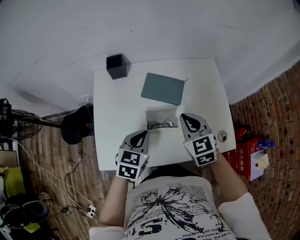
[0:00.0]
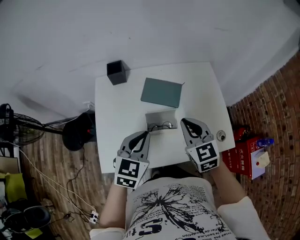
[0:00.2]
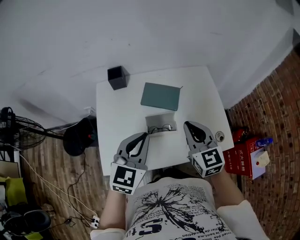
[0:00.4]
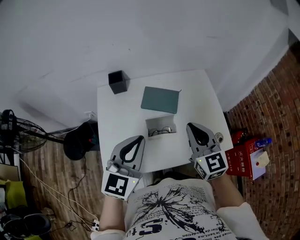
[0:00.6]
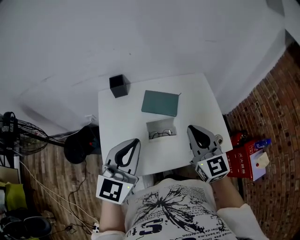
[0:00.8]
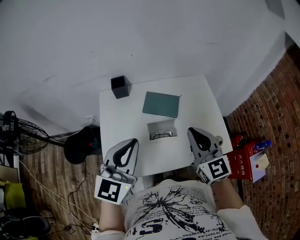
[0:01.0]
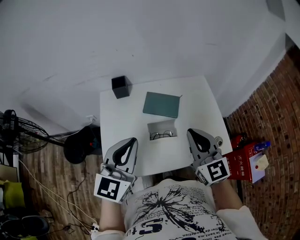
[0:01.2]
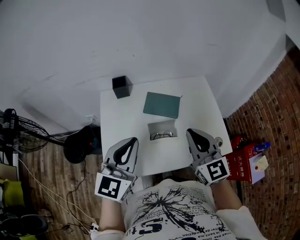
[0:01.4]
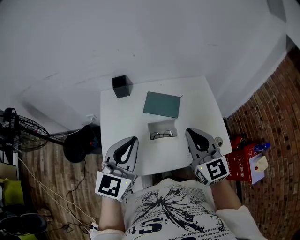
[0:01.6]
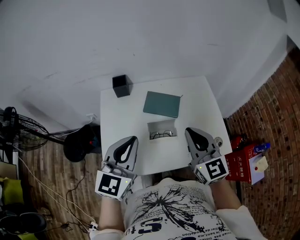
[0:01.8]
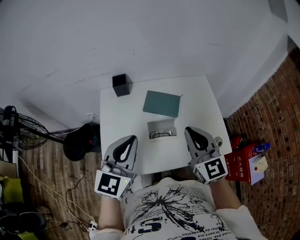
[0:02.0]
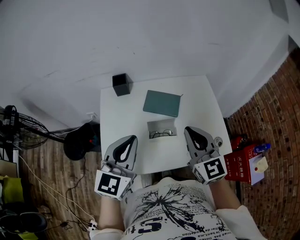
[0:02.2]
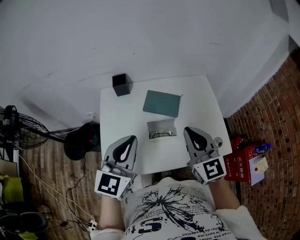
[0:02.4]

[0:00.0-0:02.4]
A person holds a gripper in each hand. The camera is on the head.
0:00.0 to 0:01.2: The right gripper goes some 15 cm upward and backward, and swivels roughly 30 degrees. The left gripper is displaced upward by roughly 20 cm, and tips its fingers upward by about 30 degrees.
0:01.2 to 0:02.4: The grippers make only small movements.

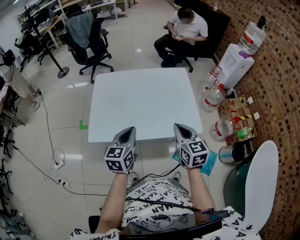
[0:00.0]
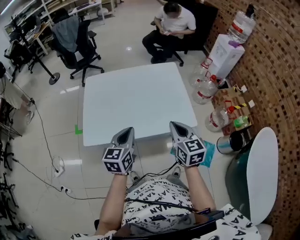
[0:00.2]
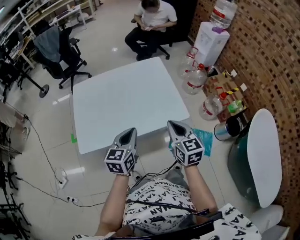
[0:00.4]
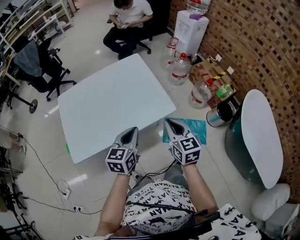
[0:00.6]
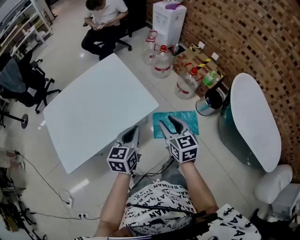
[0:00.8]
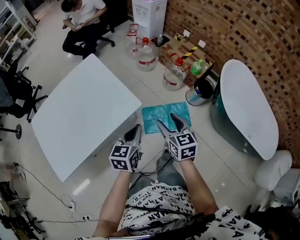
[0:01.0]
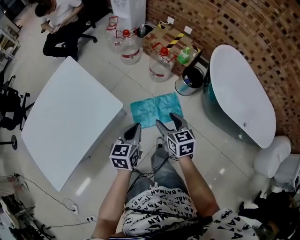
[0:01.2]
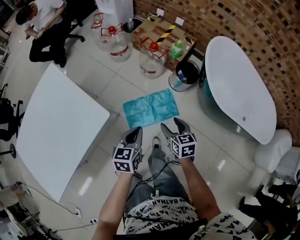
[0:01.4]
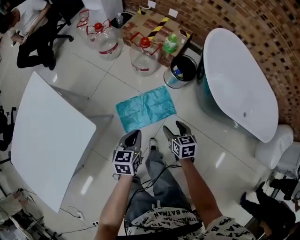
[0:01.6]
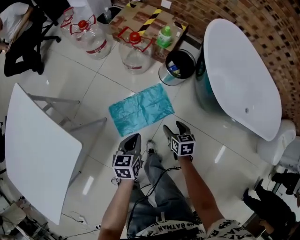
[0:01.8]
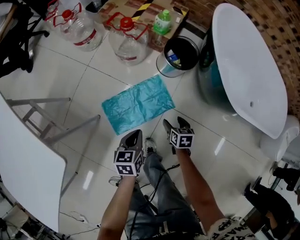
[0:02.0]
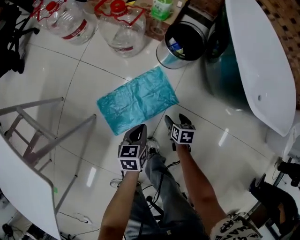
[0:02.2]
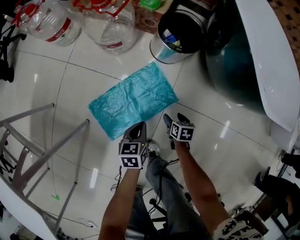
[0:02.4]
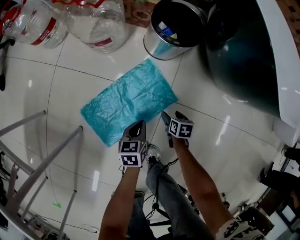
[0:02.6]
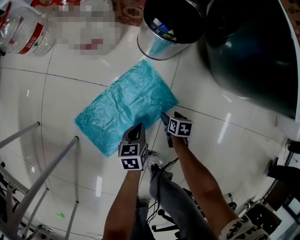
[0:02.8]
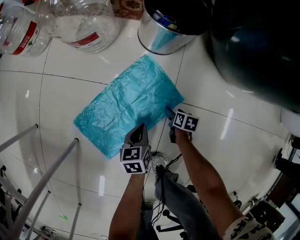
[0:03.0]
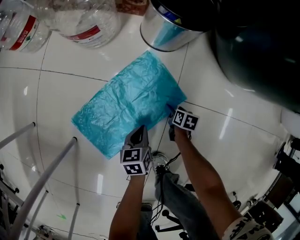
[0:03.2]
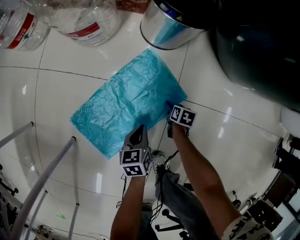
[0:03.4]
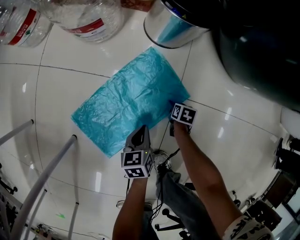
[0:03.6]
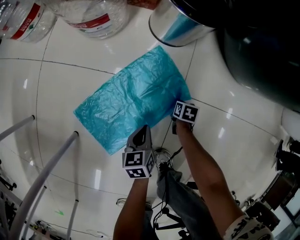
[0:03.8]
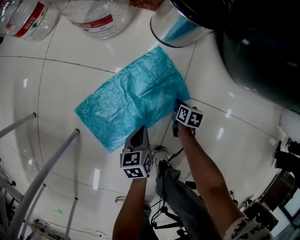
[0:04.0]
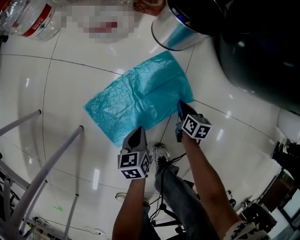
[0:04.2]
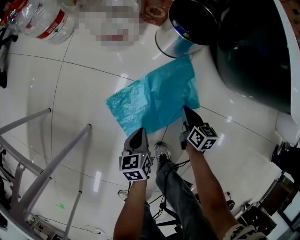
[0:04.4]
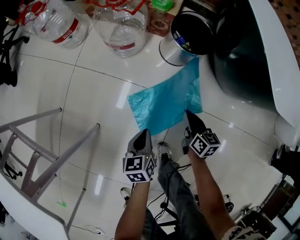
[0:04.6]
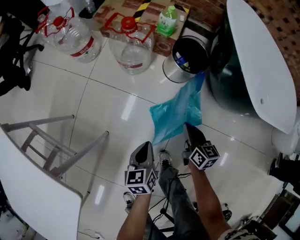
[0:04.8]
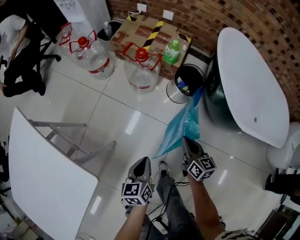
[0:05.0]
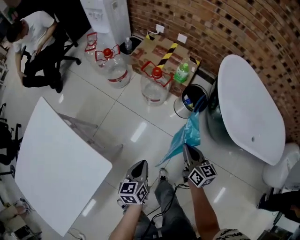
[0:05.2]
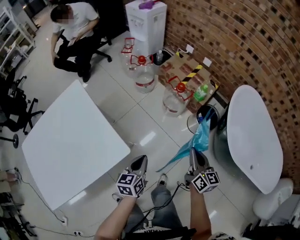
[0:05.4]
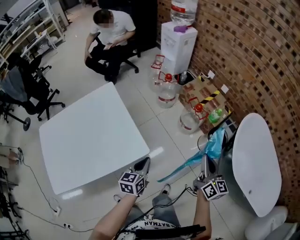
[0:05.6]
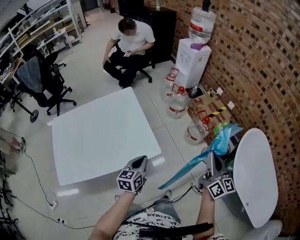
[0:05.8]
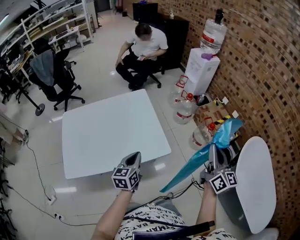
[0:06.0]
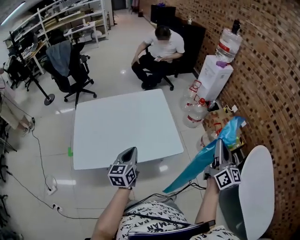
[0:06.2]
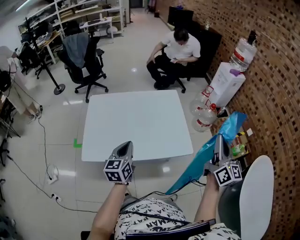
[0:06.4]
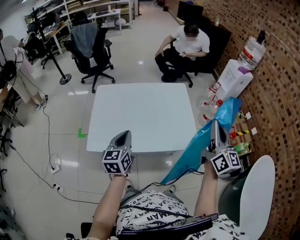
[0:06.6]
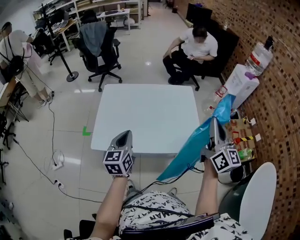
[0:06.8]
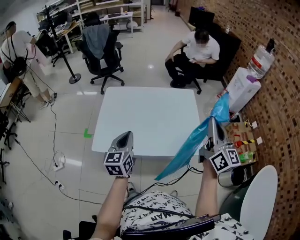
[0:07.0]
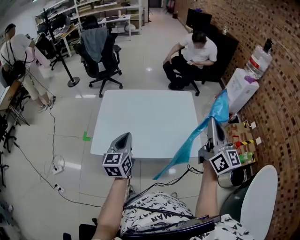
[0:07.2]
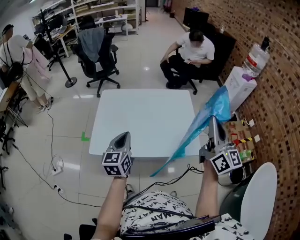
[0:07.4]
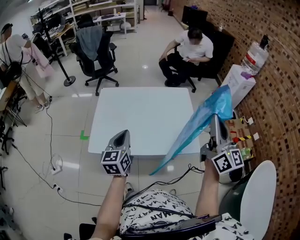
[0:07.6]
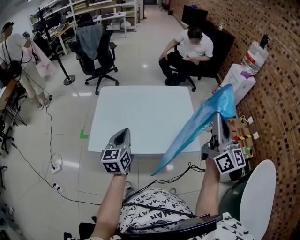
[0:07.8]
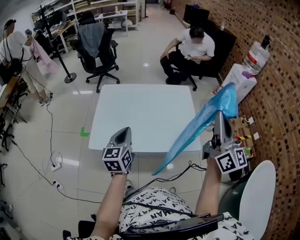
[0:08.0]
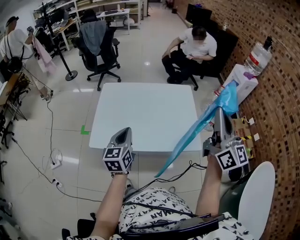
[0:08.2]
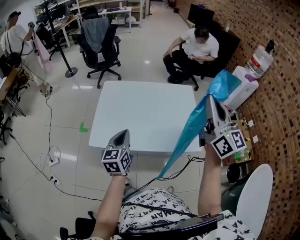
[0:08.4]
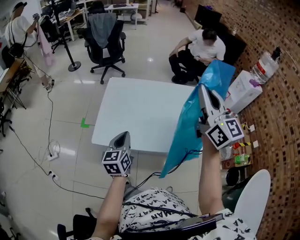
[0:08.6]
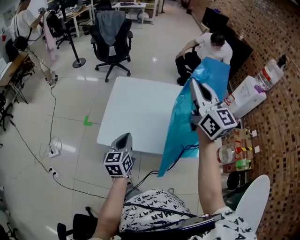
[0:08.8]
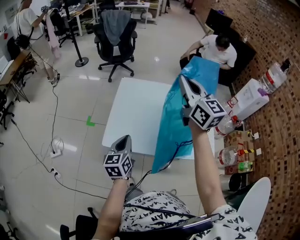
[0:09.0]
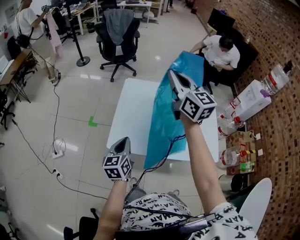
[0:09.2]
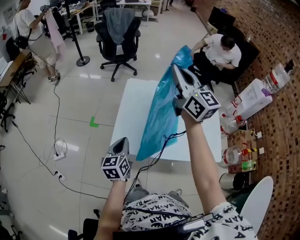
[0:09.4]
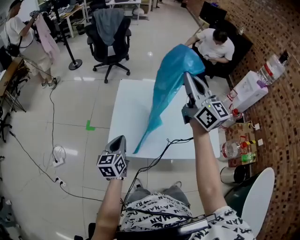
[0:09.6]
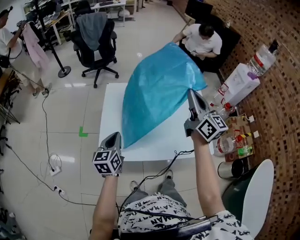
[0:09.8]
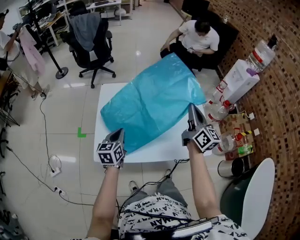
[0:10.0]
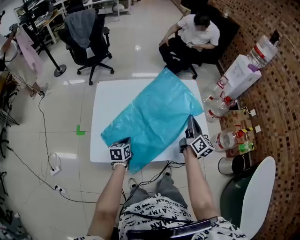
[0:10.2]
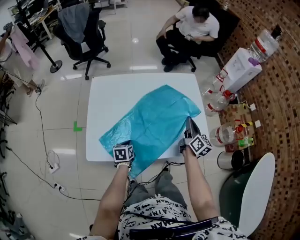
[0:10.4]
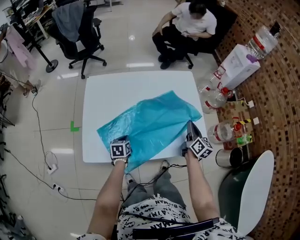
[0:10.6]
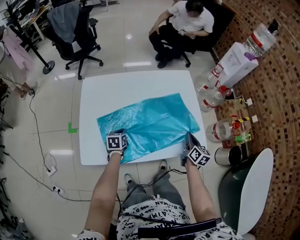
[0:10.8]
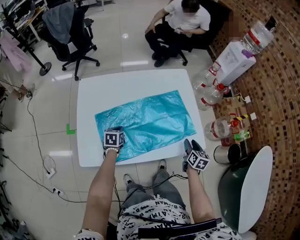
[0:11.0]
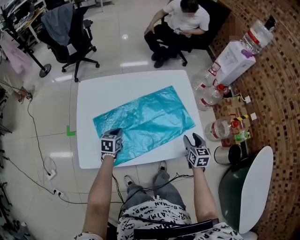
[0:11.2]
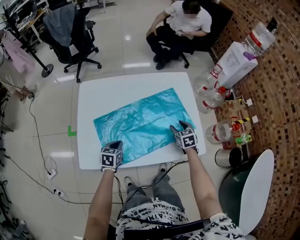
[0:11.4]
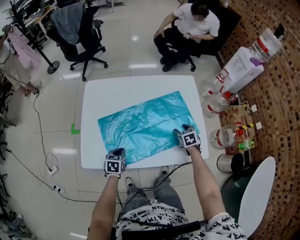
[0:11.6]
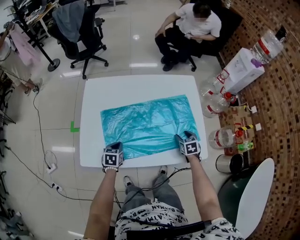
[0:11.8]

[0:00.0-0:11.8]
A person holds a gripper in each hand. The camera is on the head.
0:00.0 to 0:01.4: The pair of grippers is taken approximately 50 cm. The right gripper rotates approximately 50 degrees, and opens up. Meanwhile the left gripper changes its angle by approximately 50 degrees.
0:01.4 to 0:03.0: Both grippers move downward, approximately 70 cm. The right gripper rolls clockwise, seen from behind, by some 50 degrees, while the left gripper rotates some 20 degrees.
0:03.0 to 0:04.4: The left gripper goes some 10 cm upward. Meanwhile the right gripper heads upward, covering about 25 cm, changes its angle by approximately 30 degrees, and closes up.
0:04.4 to 0:06.0: Both grippers travel together upward, some 80 cm. The left gripper swivels about 50 degrees. Meanwhile the right gripper tilts its fingers approximately 50 degrees upward.
0:06.0 to 0:07.4: The left gripper moves some 30 cm, and changes its angle by roughly 30 degrees; the right gripper shifts by some 30 cm, and swivels roughly 20 degrees.
0:07.4 to 0:08.8: The right gripper travels to the left and forward by roughly 25 cm, and turns by roughly 20 degrees. Meanwhile the left gripper heads to the left and downward, covering some 10 cm.
0:08.8 to 0:10.4: Both grippers move downward, some 30 cm. The left gripper points its fingers about 30 degrees further downward. Meanwhile the right gripper rotates about 50 degrees.
0:10.4 to 0:11.8: The right gripper goes up and down, some 20 cm each way, reversing 2 times, tilts its fingers approximately 50 degrees downward, and opens its fingers, while the left gripper moves roughly 10 cm forward and comes back.

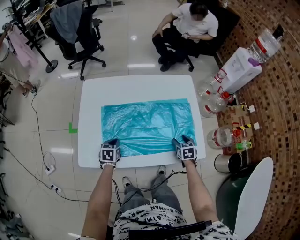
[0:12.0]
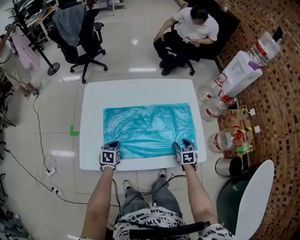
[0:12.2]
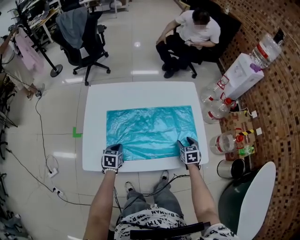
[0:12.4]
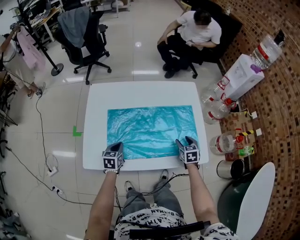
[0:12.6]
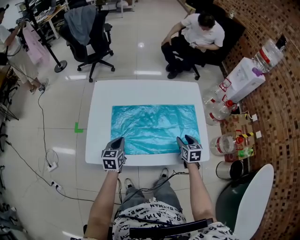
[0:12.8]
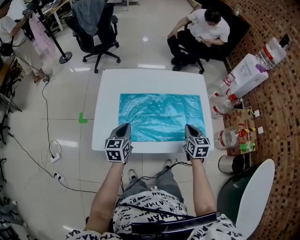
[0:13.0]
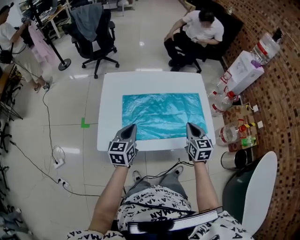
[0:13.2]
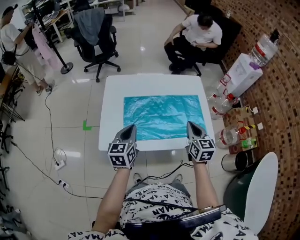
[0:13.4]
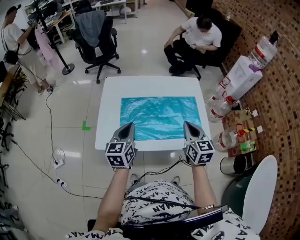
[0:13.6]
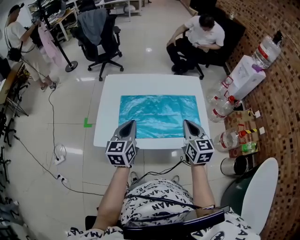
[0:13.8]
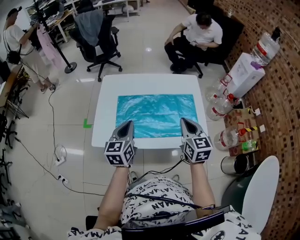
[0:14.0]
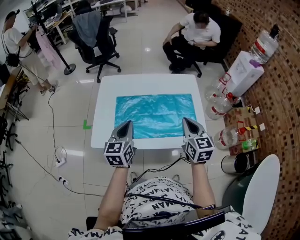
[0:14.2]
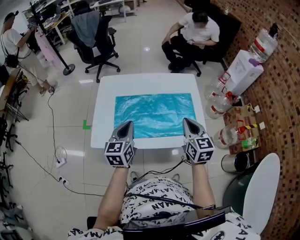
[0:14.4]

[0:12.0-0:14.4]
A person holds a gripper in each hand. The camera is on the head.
0:12.0 to 0:13.2: The right gripper moves upward and to the left, about 25 cm, rotates about 30 degrees, and closes its fingers. Meanwhile the left gripper is displaced upward by some 20 cm, and tips its fingers upward by approximately 30 degrees.
0:13.2 to 0:14.4: The left gripper shifts about 10 cm upward and to the right. Meanwhile the right gripper is displaced upward by some 10 cm.

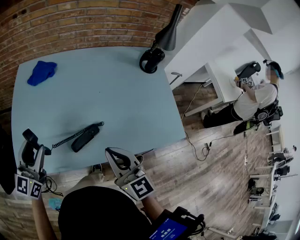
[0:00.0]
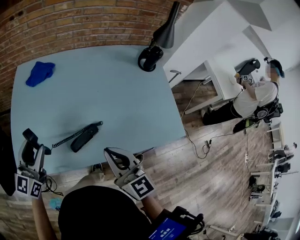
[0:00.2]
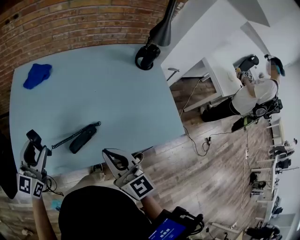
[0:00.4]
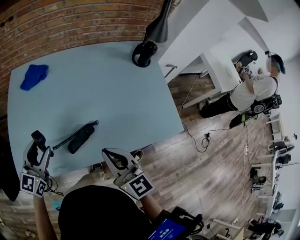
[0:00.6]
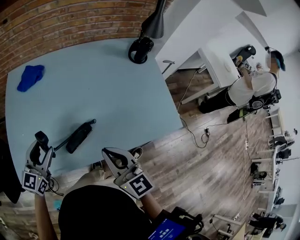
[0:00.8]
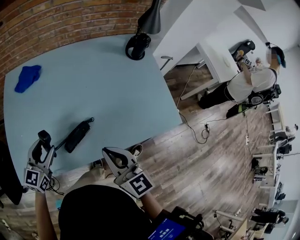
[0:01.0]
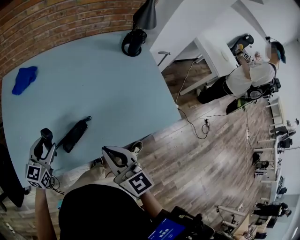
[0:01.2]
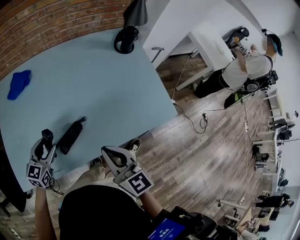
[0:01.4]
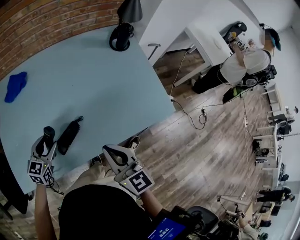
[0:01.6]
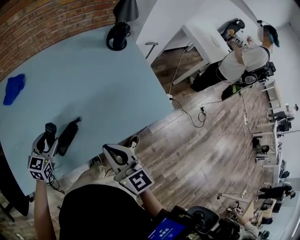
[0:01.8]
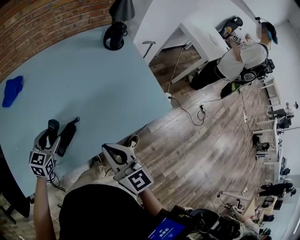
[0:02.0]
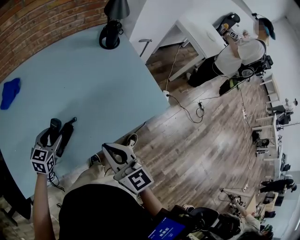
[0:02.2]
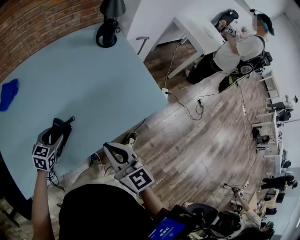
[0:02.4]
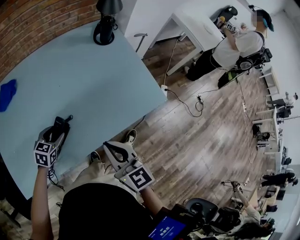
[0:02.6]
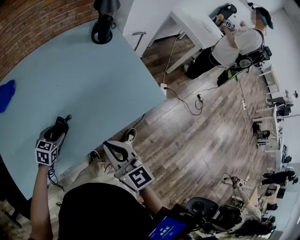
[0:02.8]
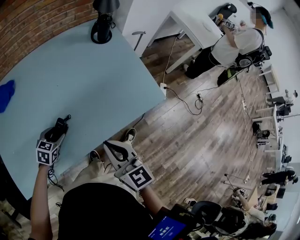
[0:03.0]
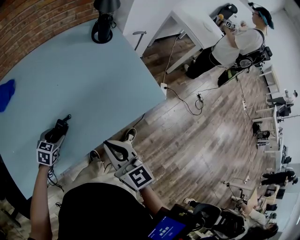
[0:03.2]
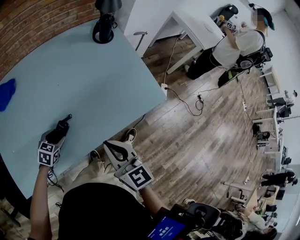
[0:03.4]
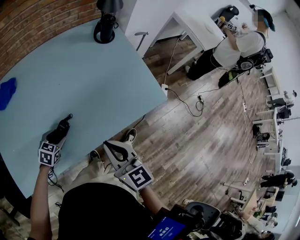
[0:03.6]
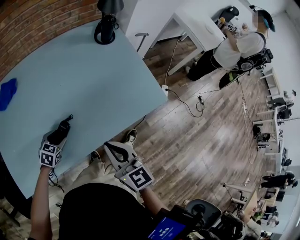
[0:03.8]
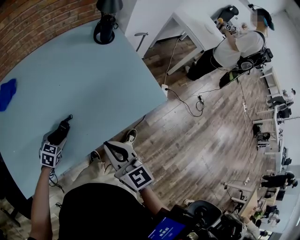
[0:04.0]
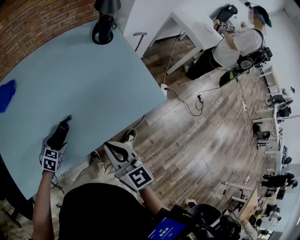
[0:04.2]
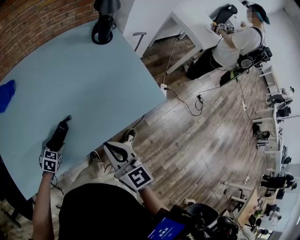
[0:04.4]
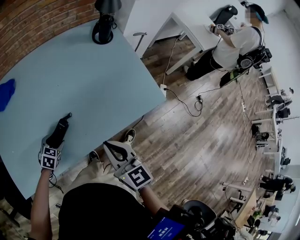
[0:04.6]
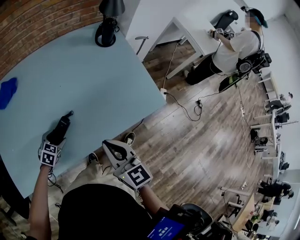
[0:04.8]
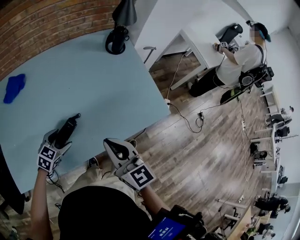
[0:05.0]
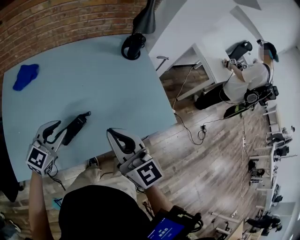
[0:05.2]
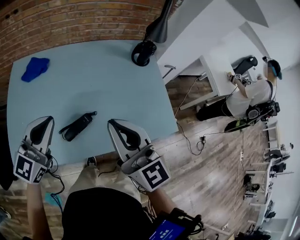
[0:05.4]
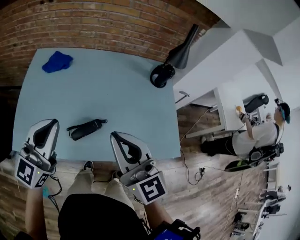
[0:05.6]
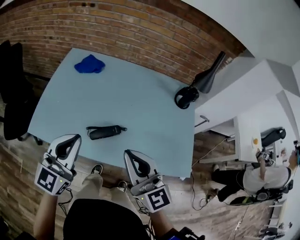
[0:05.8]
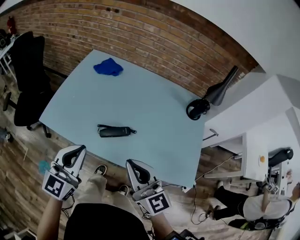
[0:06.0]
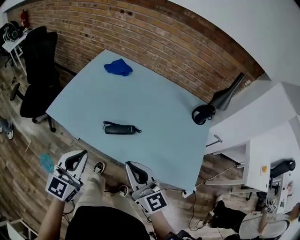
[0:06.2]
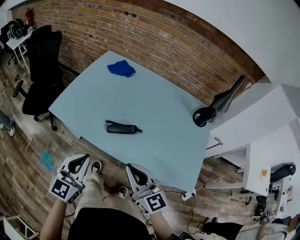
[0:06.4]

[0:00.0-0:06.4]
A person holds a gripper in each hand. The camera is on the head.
0:00.0 to 0:01.6: The right gripper travels to the right by about 5 cm. Meanwhile the left gripper goes approximately 20 cm downward and to the right, and turns by some 30 degrees.
0:01.6 to 0:03.2: The right gripper goes about 5 cm to the right; the left gripper heads downward and to the right, covering about 10 cm, and swivels some 20 degrees.
0:03.2 to 0:04.8: The grippers stay close to where they were, moving slightly.
0:04.8 to 0:06.4: The right gripper swivels about 50 degrees; the left gripper goes about 30 cm upward, angles its fingers upward, by some 50 degrees, and closes up.
